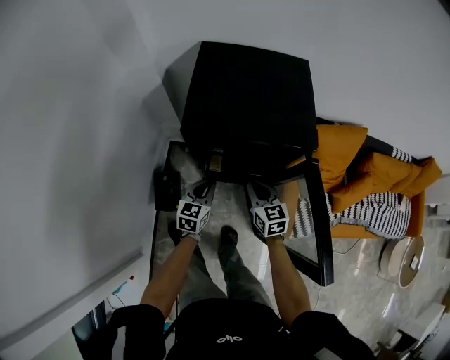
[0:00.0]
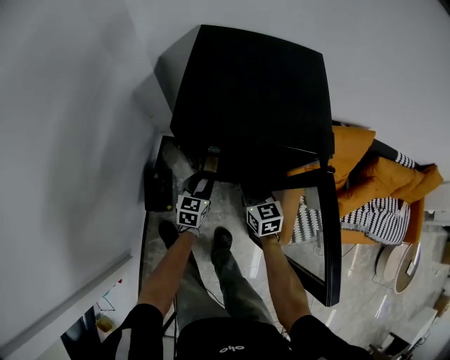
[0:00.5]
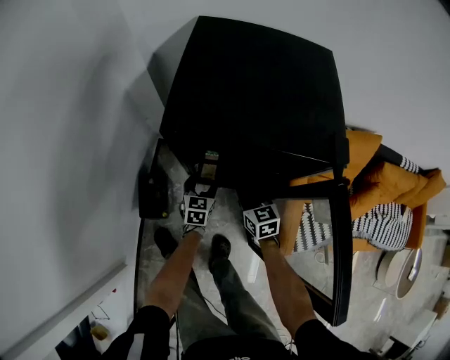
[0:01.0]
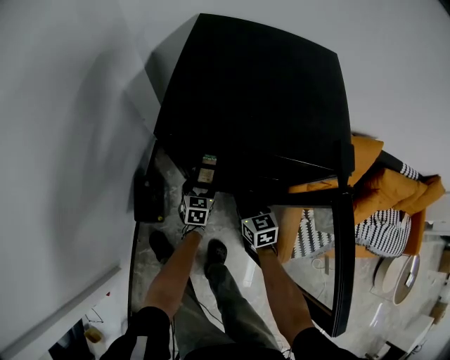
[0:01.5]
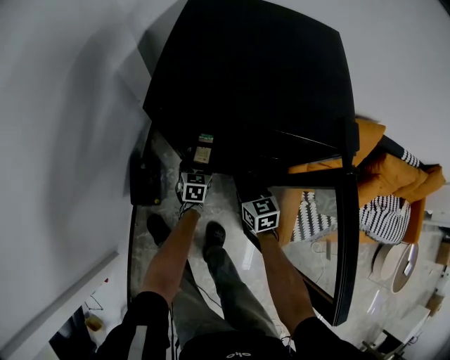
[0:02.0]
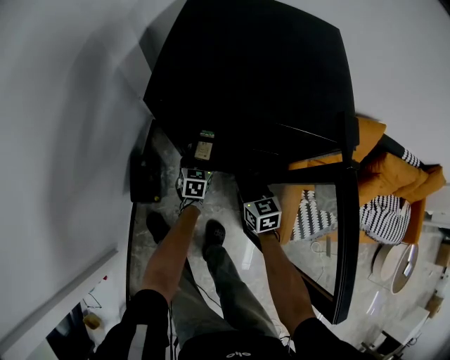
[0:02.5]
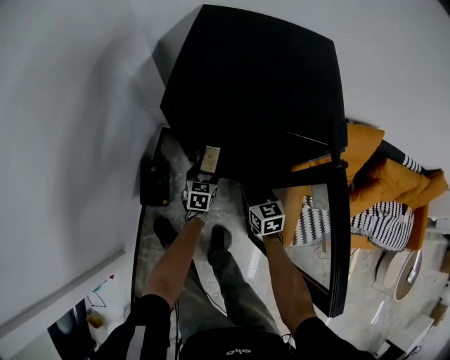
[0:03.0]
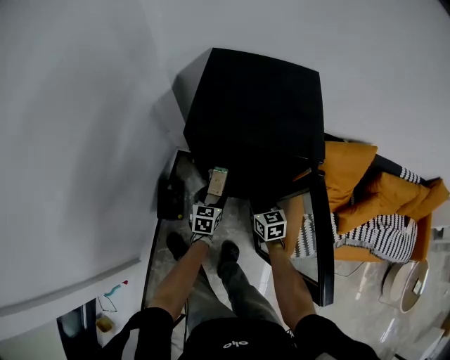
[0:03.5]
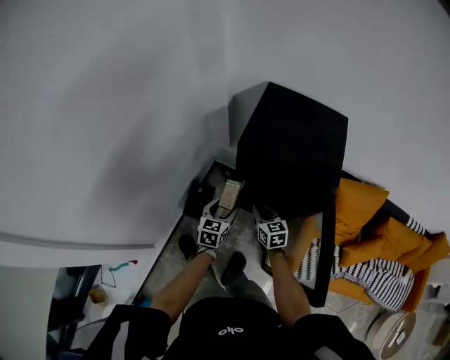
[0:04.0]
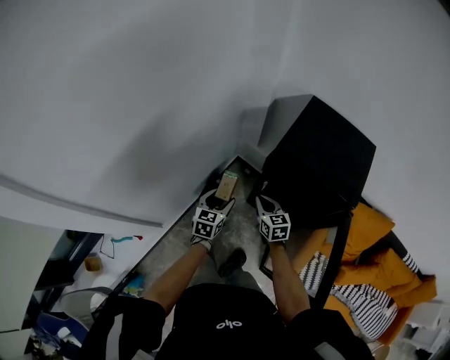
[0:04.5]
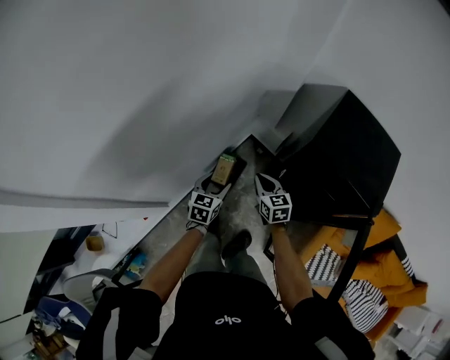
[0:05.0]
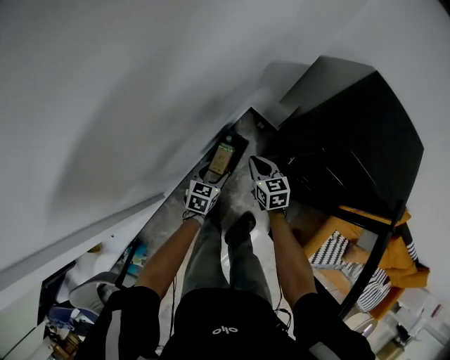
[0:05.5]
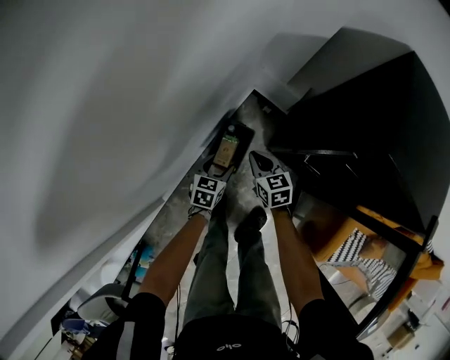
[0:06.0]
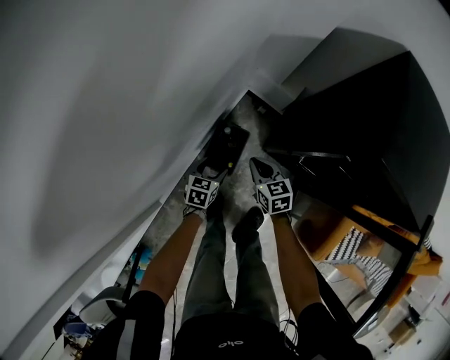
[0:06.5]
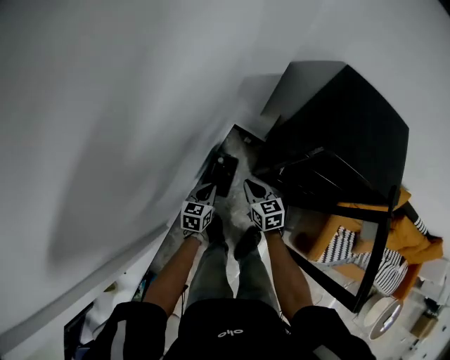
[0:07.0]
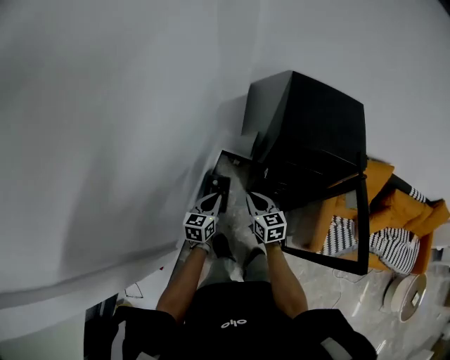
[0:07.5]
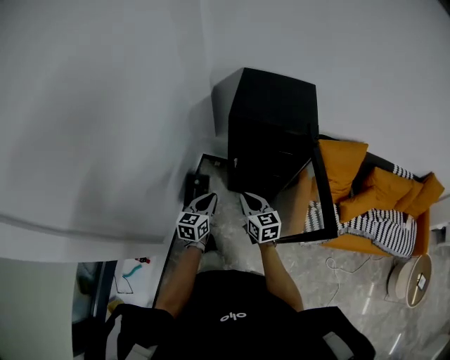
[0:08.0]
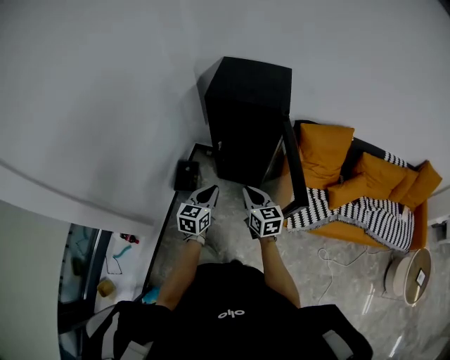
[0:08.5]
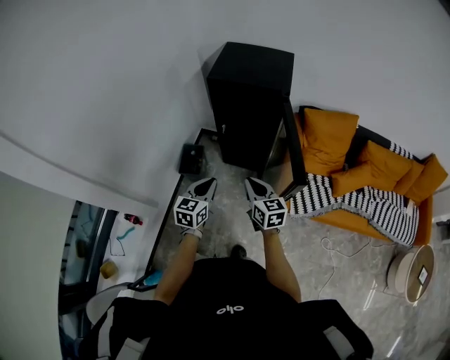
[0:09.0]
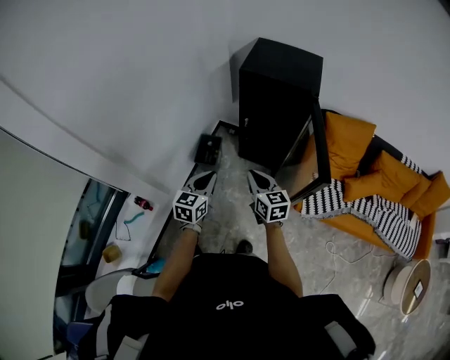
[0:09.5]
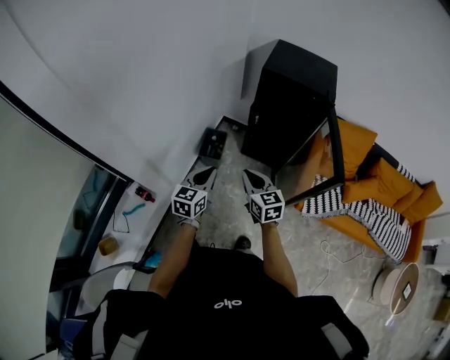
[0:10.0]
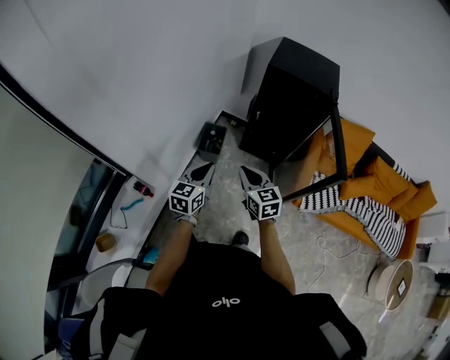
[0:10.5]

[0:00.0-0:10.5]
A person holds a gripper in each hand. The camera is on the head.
0.0 to 2.0 s: The left gripper moves downward and forward, approximately 25 cm, and opens its fingers. The right gripper travels downward by roughly 20 cm.
2.0 to 4.0 s: The right gripper travels upward and to the left by some 20 cm. The left gripper heads upward and backward, covering approximately 35 cm.
4.0 to 6.5 s: The left gripper is displaced downward, to the left and forward by roughly 40 cm, and changes its angle by approximately 20 degrees, while the right gripper goes about 35 cm to the left, downward and forward.
6.5 to 8.5 s: The two grippers travel together, backward and to the right, some 40 cm. The grippers both shift upward by about 35 cm. The left gripper changes its angle by roughly 30 degrees, and closes. Meanwhile the right gripper rotates about 30 degrees.
8.5 to 10.5 s: Both grippers move to the left and backward, roughly 25 cm.

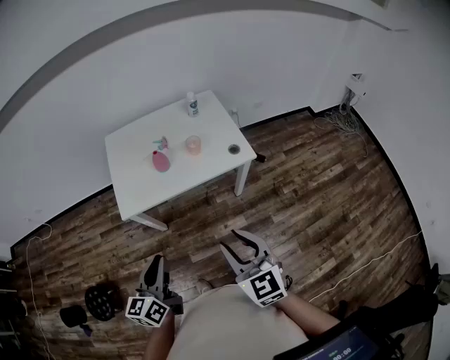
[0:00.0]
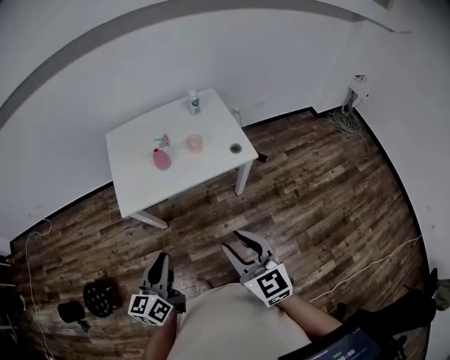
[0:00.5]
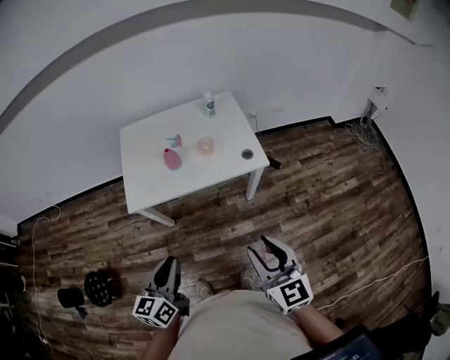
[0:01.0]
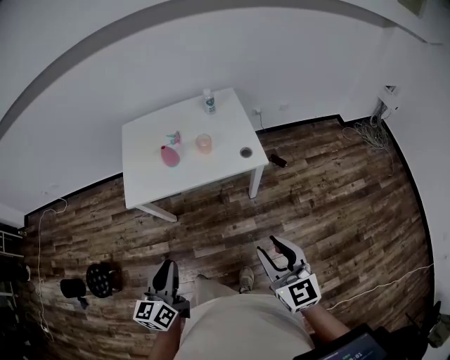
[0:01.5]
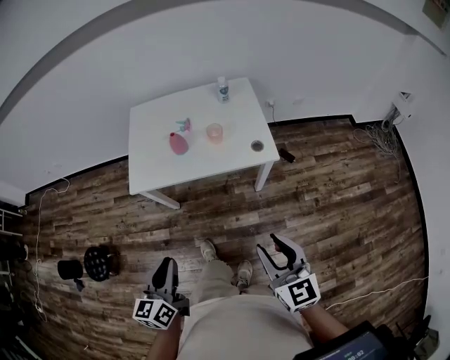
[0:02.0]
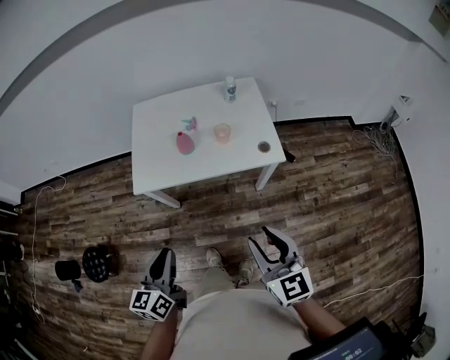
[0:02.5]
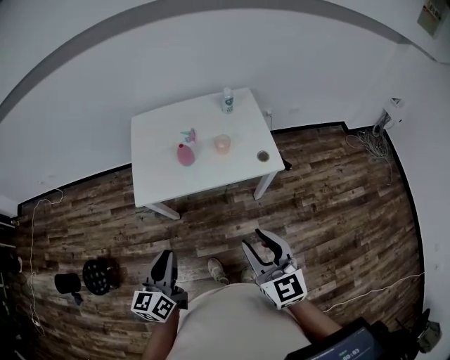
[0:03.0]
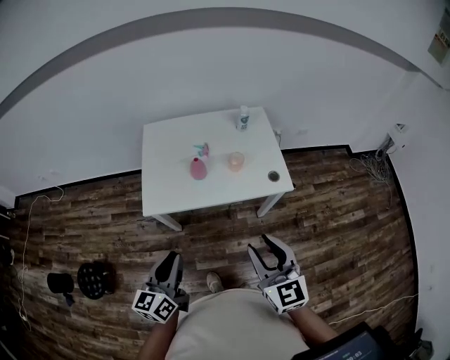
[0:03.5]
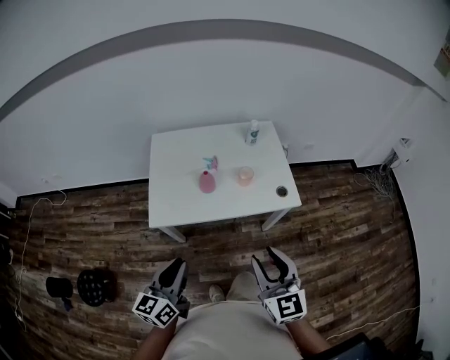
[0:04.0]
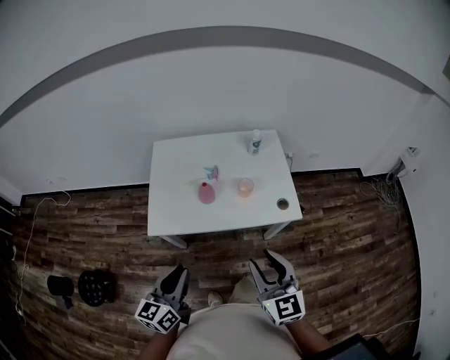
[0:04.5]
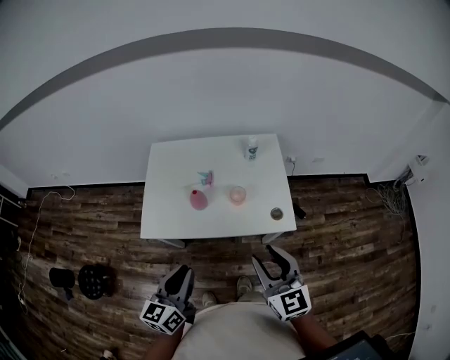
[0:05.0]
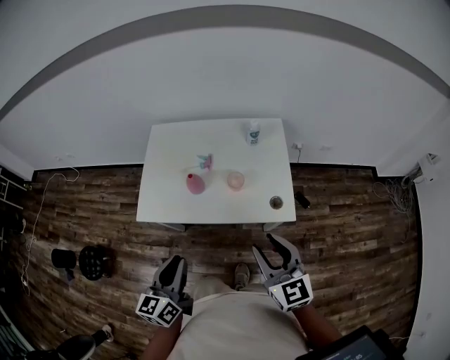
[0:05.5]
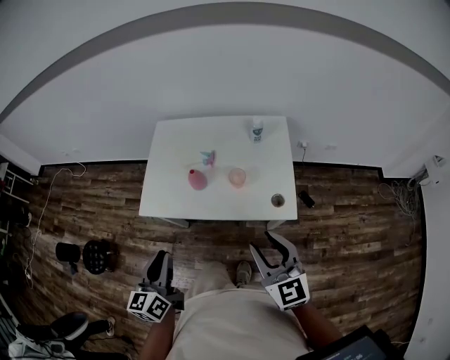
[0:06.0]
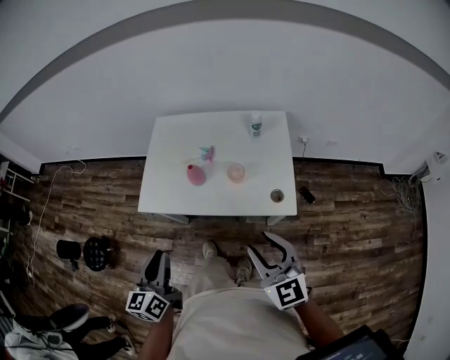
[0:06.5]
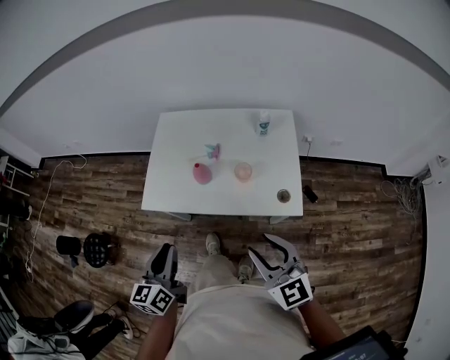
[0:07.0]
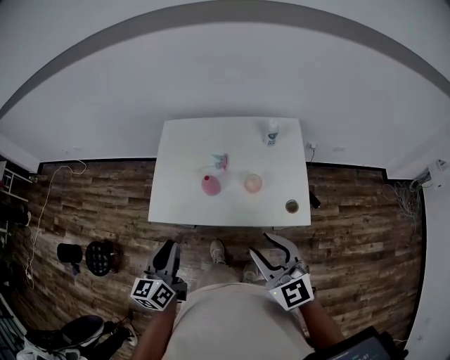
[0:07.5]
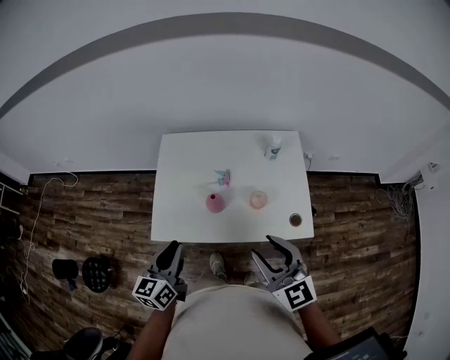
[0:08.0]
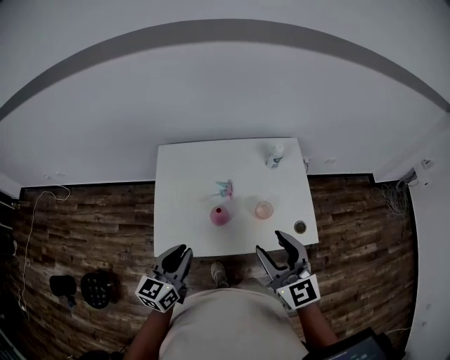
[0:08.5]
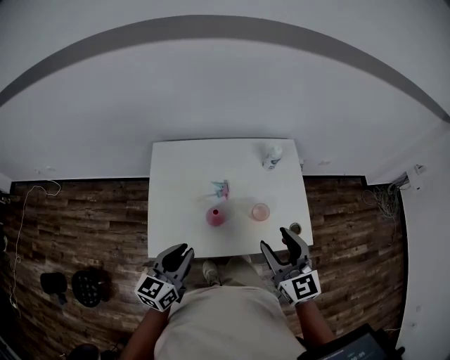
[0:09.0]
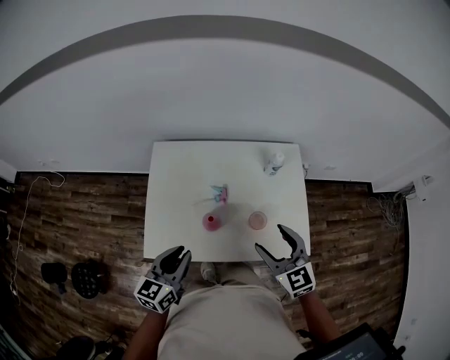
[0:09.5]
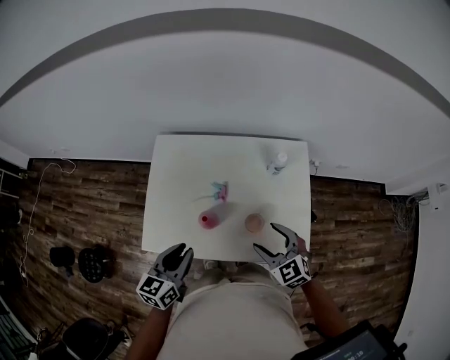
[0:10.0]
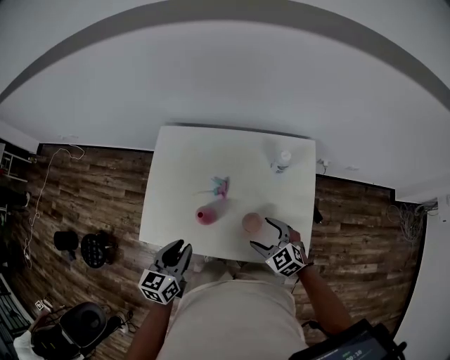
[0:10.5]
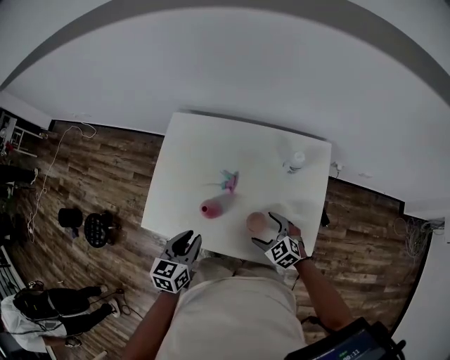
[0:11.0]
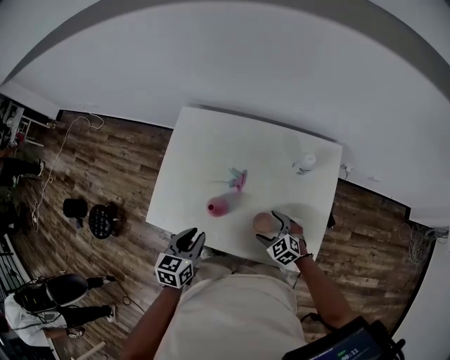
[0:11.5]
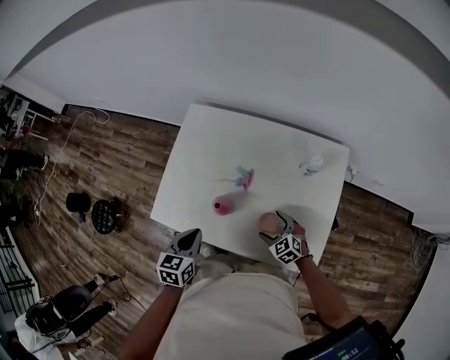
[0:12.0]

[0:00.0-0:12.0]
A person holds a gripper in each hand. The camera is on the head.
0.0 to 2.0 s: The right gripper goes roughly 15 cm to the right. Meanwhile the left gripper shifts roughly 5 cm to the right.
2.0 to 4.0 s: The left gripper goes some 15 cm forward and to the left, while the right gripper goes approximately 20 cm to the left and forward.
4.0 to 6.0 s: The right gripper is displaced to the right and forward by some 20 cm. Meanwhile the left gripper is displaced to the right by some 10 cm, and changes its angle by about 20 degrees.
6.0 to 8.0 s: The left gripper heads forward, covering some 15 cm. The right gripper heads forward and to the left, covering roughly 15 cm.
8.0 to 10.0 s: The right gripper travels forward and downward by roughly 20 cm, and changes its angle by some 30 degrees, while the left gripper moves forward and to the right, approximately 10 cm.
10.0 to 12.0 s: The left gripper is displaced downward by about 10 cm, and rotates some 20 degrees. The right gripper goes some 20 cm downward.

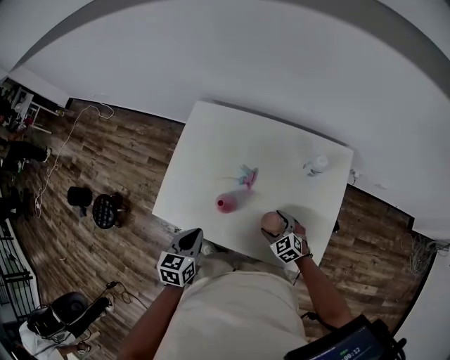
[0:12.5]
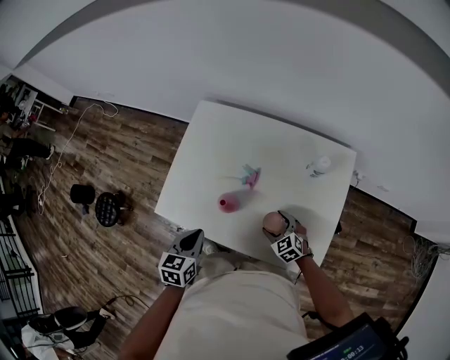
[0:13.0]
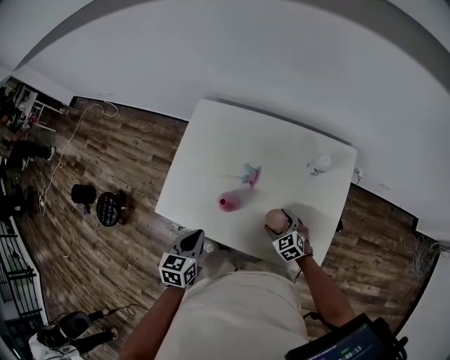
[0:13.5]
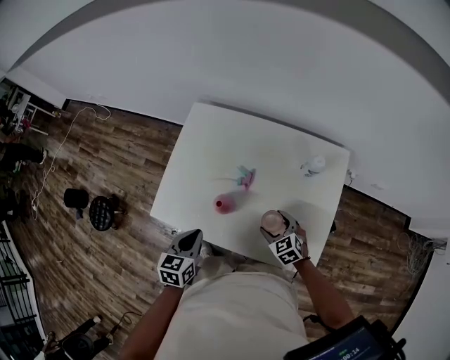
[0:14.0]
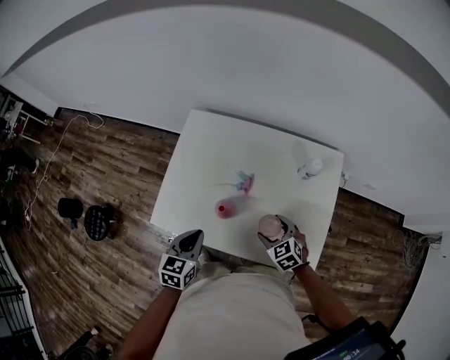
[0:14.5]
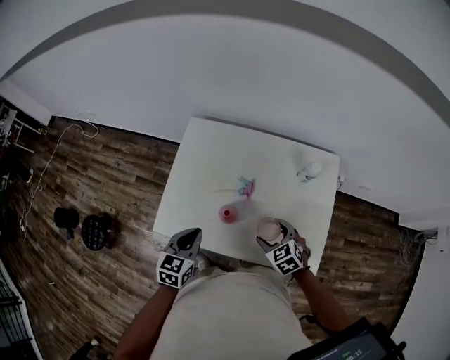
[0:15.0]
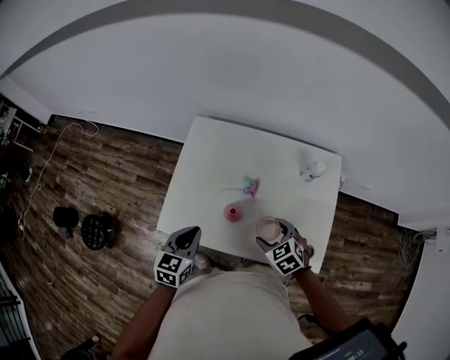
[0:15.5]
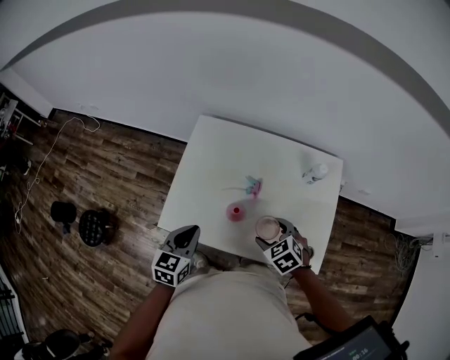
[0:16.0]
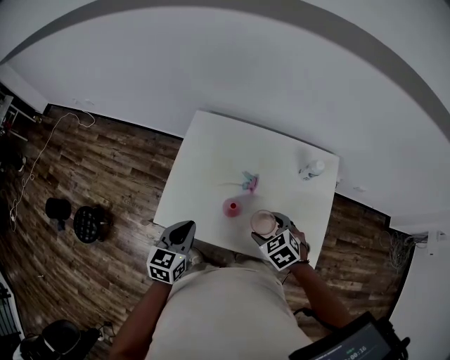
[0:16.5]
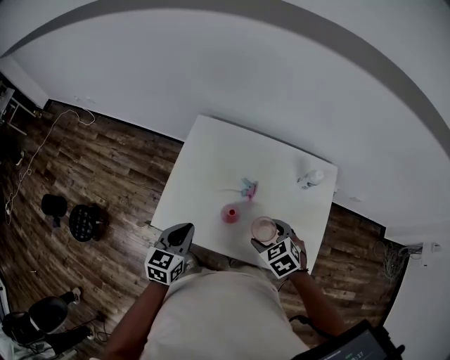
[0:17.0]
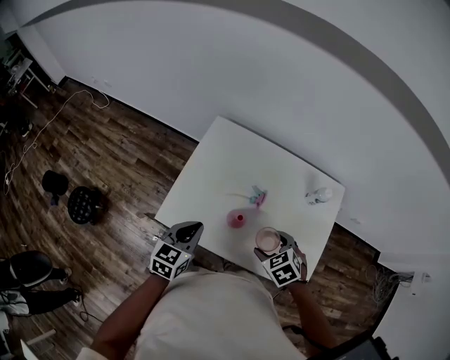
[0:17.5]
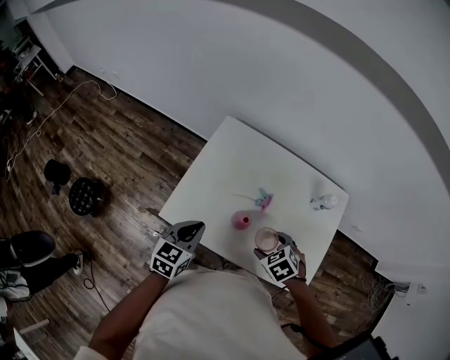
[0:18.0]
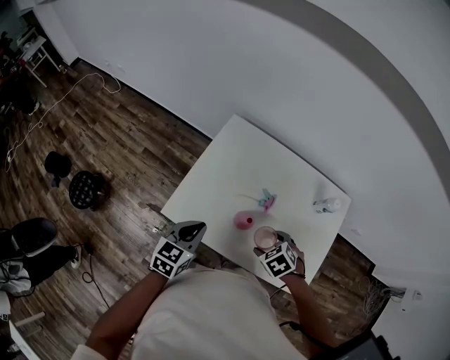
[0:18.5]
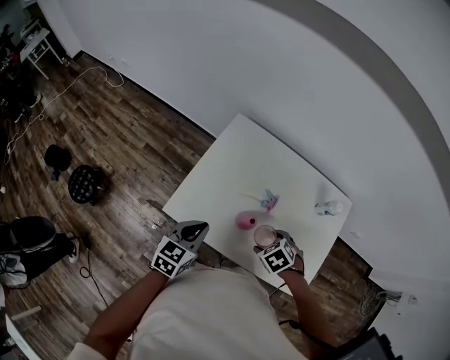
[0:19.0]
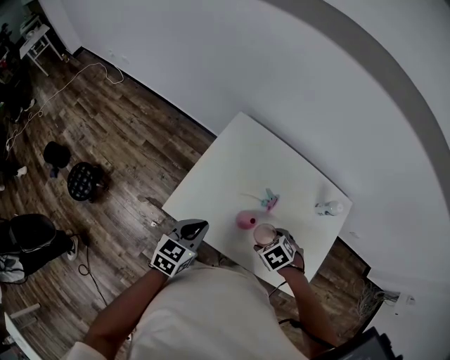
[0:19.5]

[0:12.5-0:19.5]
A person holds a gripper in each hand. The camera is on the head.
12.5 to 14.5 s: The right gripper travels upward by approximately 10 cm.
14.5 to 16.0 s: The right gripper is displaced upward and to the left by some 10 cm. The left gripper shifts approximately 5 cm to the left.
16.0 to 17.5 s: The grippers move only a little.
17.5 to 19.5 s: The right gripper heads downward, covering some 5 cm.
